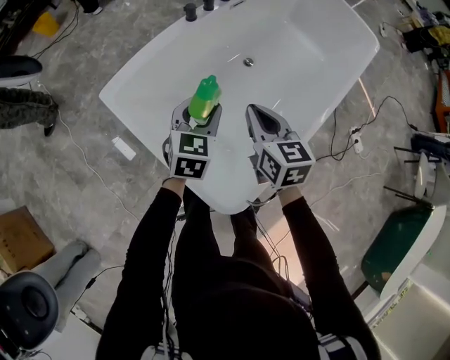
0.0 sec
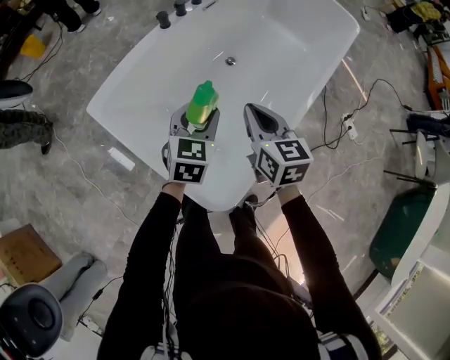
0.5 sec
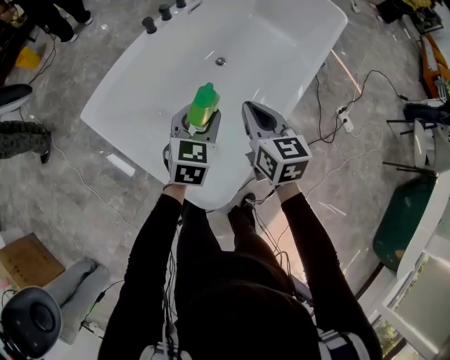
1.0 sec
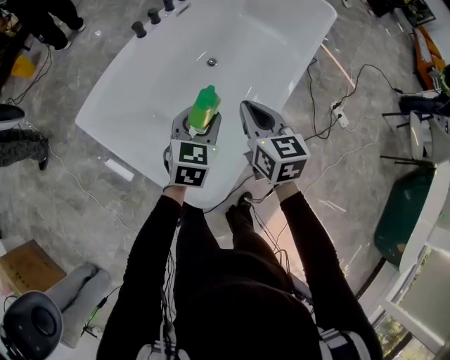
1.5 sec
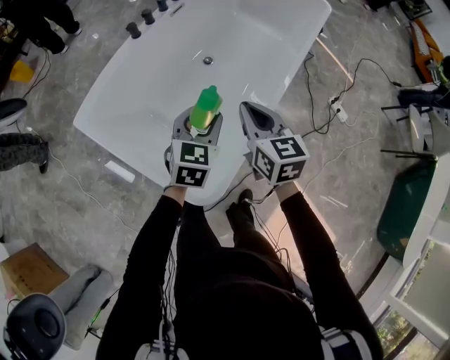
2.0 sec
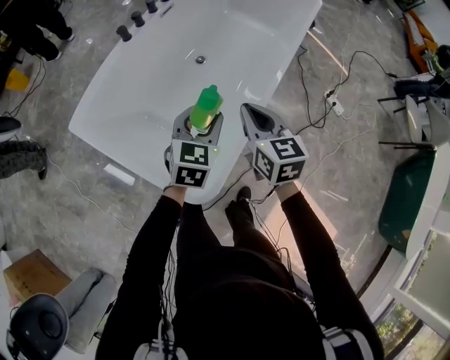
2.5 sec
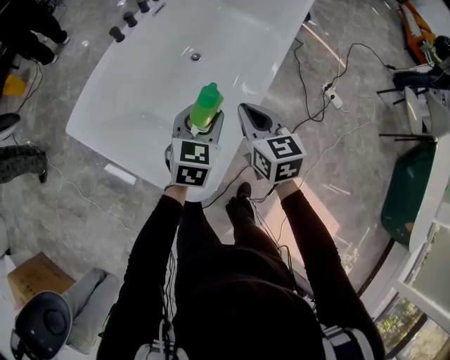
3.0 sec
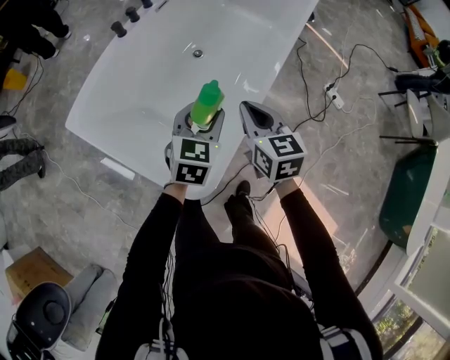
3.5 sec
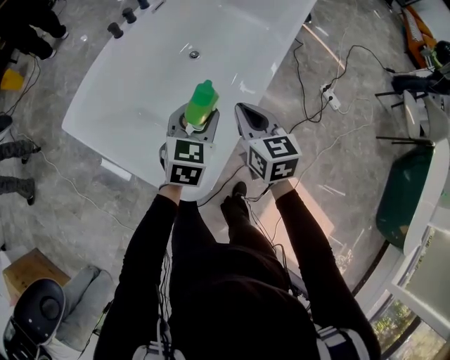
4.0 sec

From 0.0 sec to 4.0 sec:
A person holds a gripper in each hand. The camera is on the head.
From 0.0 sec to 2.0 sec: The grippers both shift to the right by roughly 15 cm.
From 2.0 sec to 4.0 sec: The grippers move only a little.

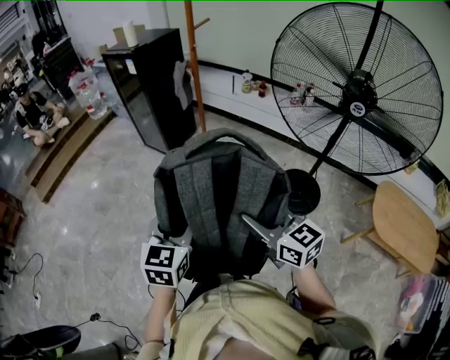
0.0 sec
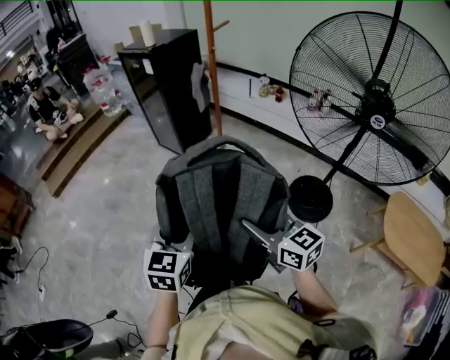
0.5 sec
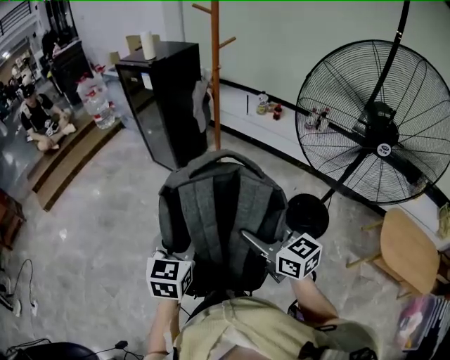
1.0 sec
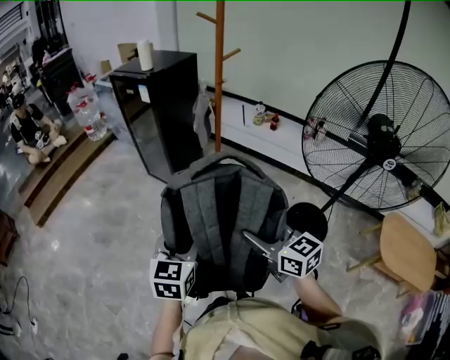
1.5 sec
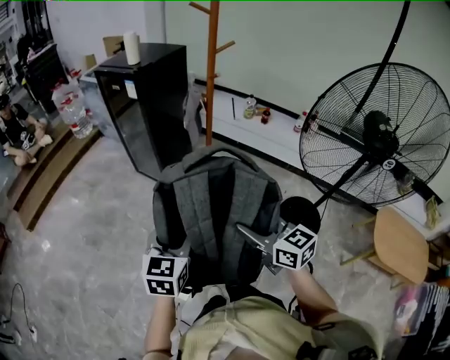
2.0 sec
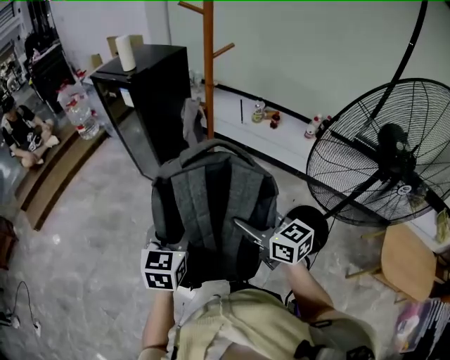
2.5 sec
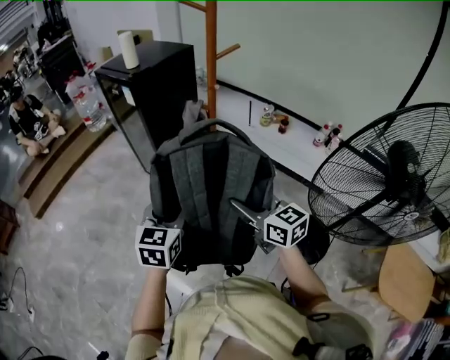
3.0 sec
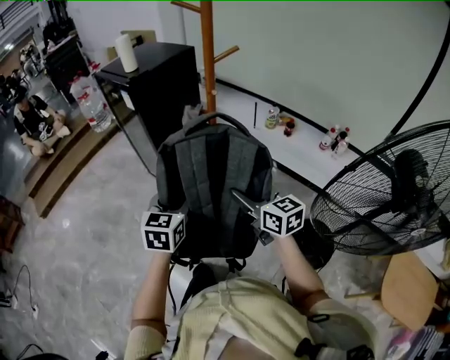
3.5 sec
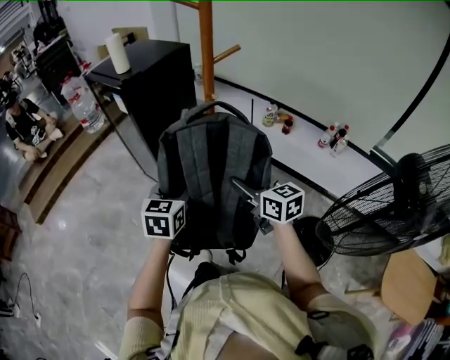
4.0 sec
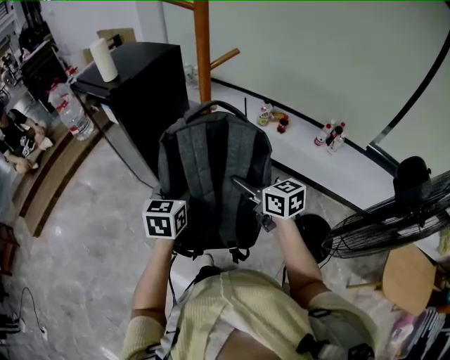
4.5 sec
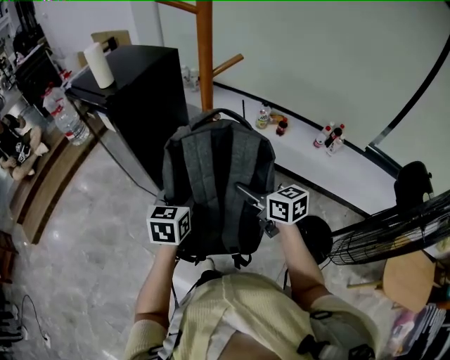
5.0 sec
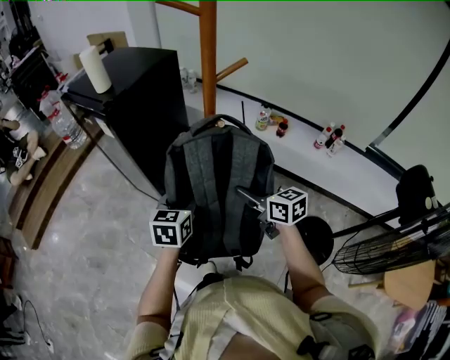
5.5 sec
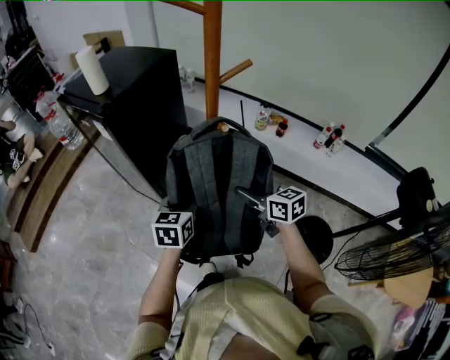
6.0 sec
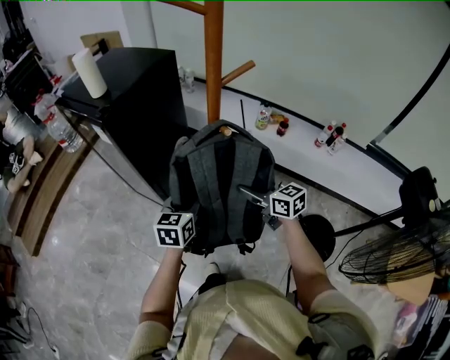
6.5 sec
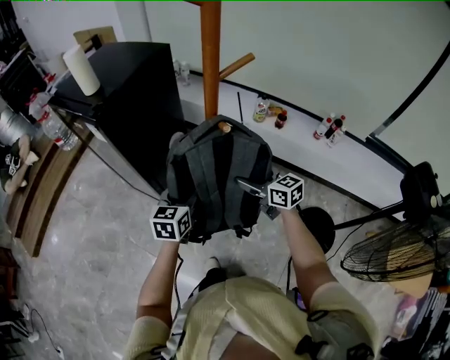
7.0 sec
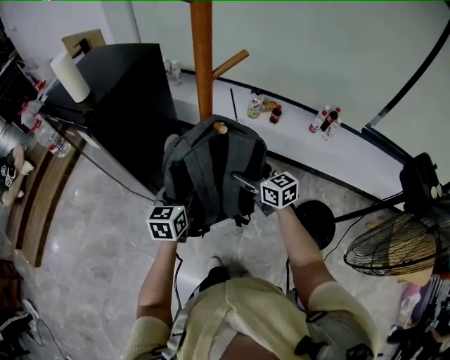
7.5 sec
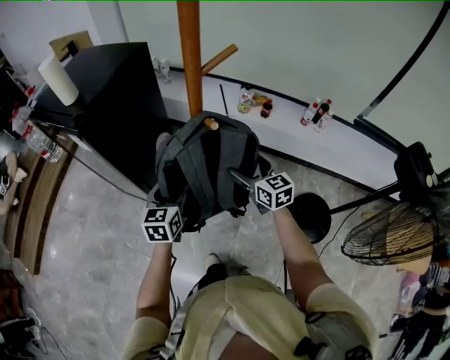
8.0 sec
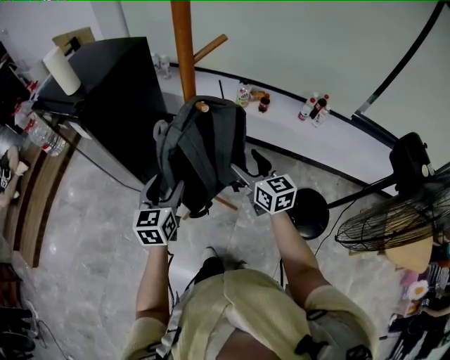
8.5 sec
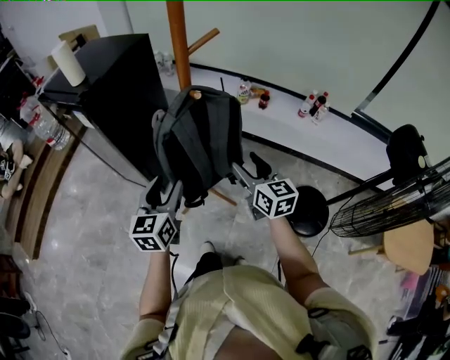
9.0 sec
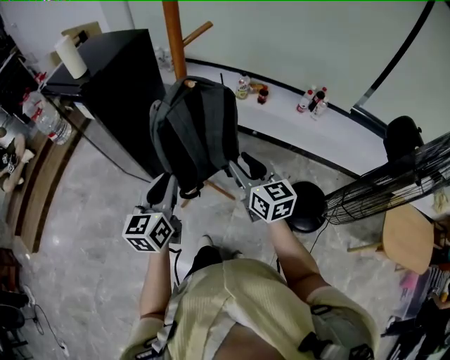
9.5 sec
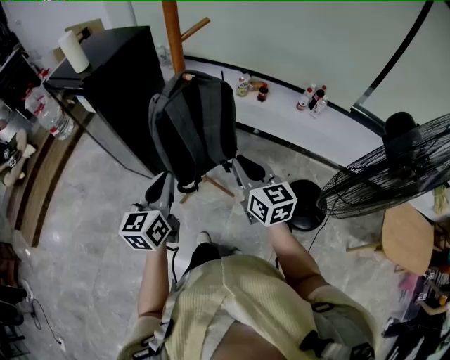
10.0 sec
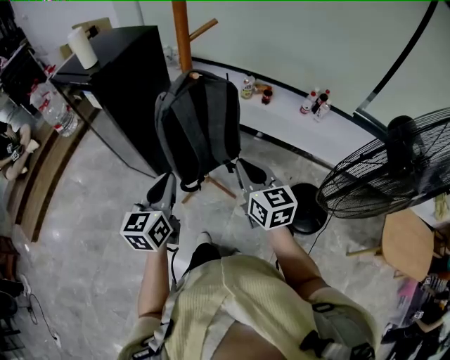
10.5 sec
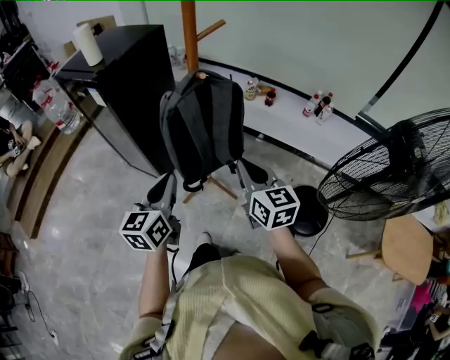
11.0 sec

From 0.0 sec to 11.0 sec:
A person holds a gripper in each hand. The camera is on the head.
From 0.0 sec to 2.0 sec: The two grippers go approximately 25 cm forward.
From 2.0 sec to 3.5 sec: The grippers both shift forward and to the right by about 30 cm.
From 3.5 sec to 5.5 sec: The two grippers go some 15 cm forward.
From 5.5 sec to 7.5 sec: The grippers both shift forward and downward by some 10 cm. The right gripper opens its fingers.
From 7.5 sec to 9.0 sec: The grippers both shift backward and upward by approximately 15 cm.
From 9.0 sec to 11.0 sec: The grippers both shift backward by roughly 10 cm. The right gripper closes its fingers, while the left gripper closes.

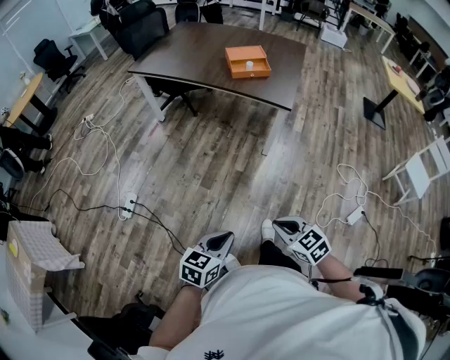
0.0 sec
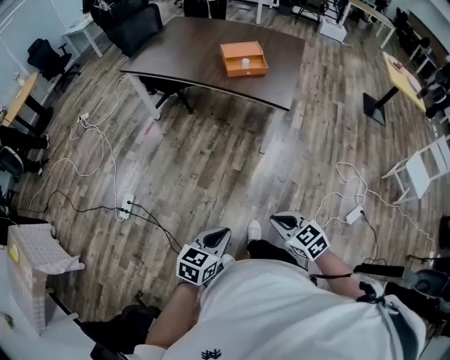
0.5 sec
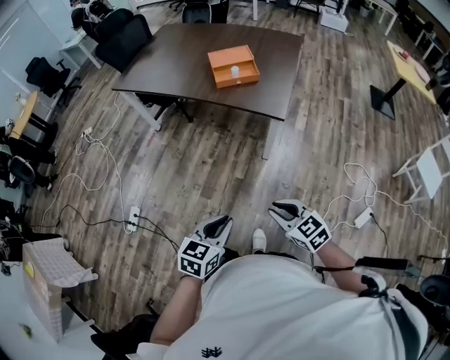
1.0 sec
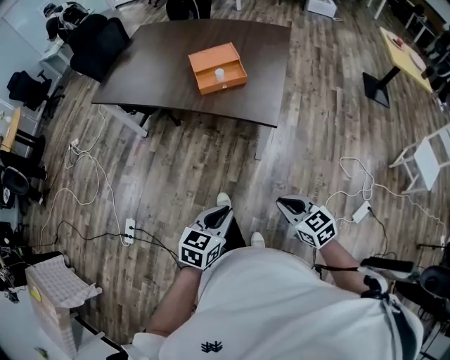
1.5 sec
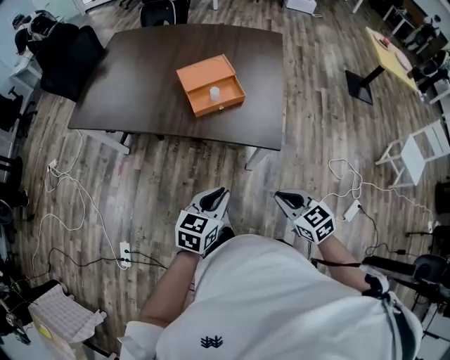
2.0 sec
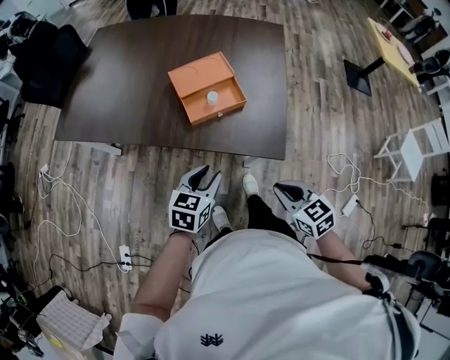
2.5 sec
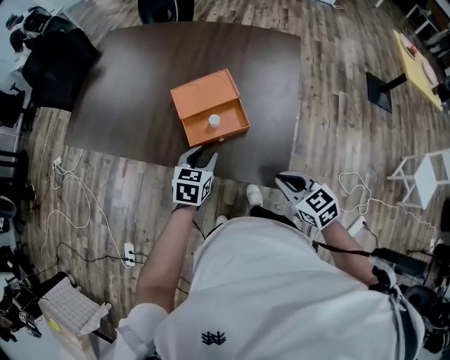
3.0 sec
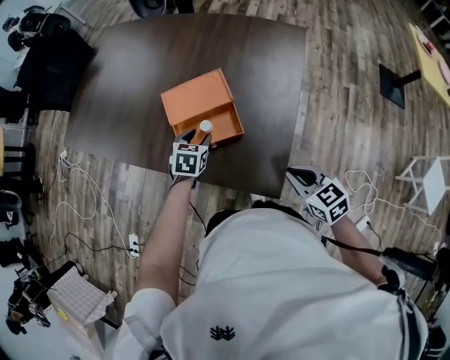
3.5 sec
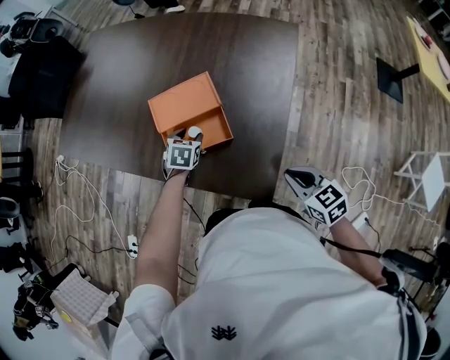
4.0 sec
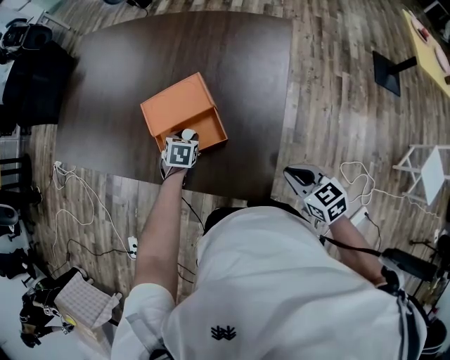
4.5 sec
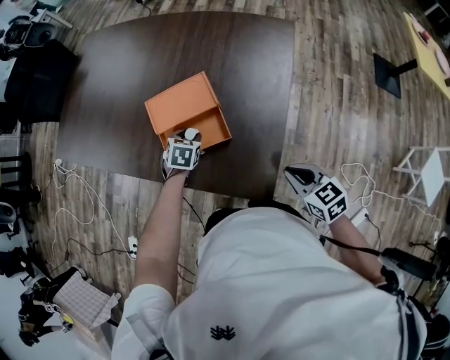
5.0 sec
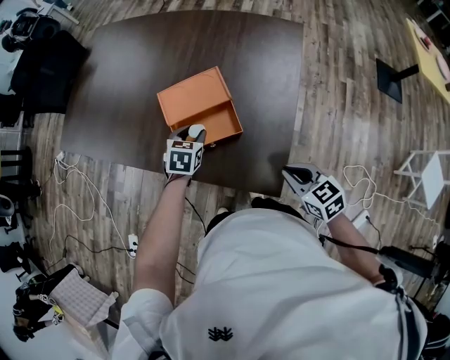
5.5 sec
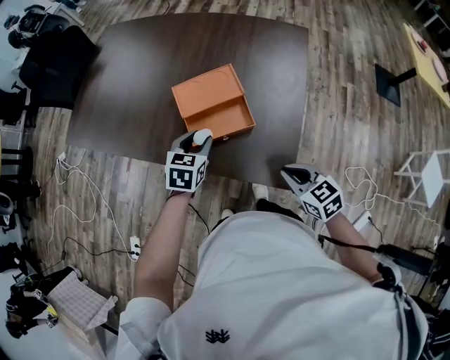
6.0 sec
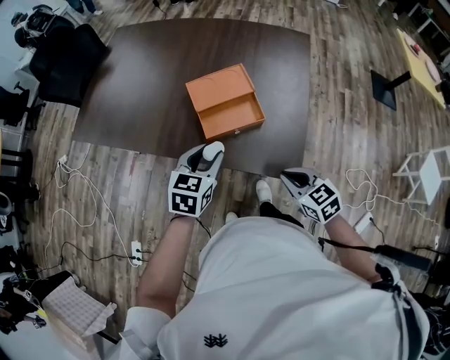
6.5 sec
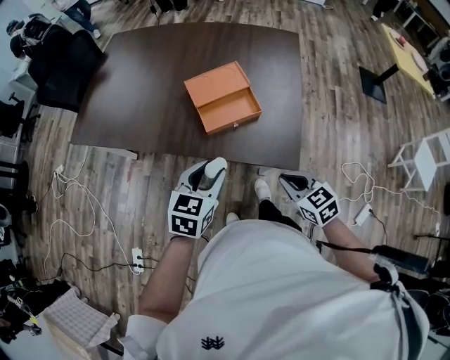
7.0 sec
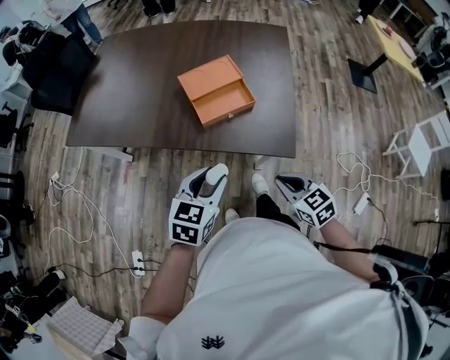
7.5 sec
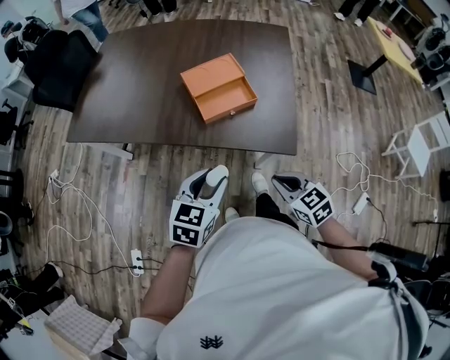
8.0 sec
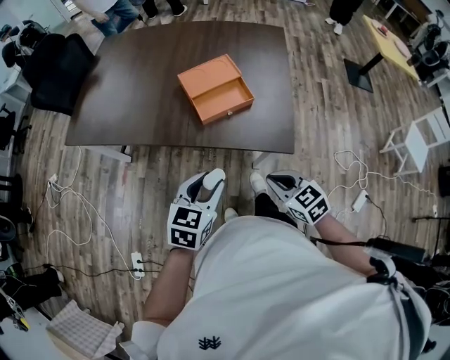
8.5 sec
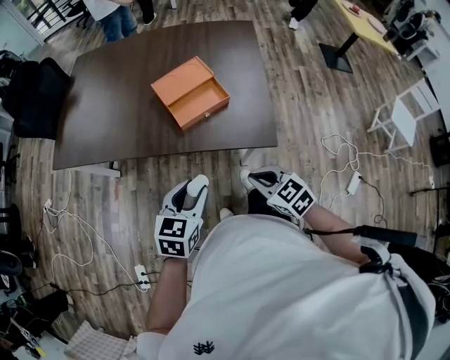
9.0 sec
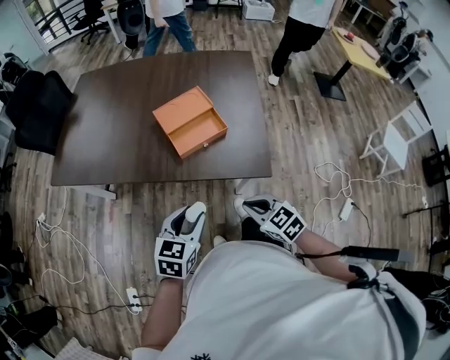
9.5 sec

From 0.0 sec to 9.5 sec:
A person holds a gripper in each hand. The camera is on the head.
From 0.0 sec to 2.0 sec: The two grippers travel together, forward, some 50 cm.
From 2.0 sec to 4.0 sec: Both grippers are carried forward, some 40 cm. The left gripper tilts its fingers some 30 degrees downward, and opens.
From 4.0 sec to 5.5 sec: The left gripper travels upward by roughly 5 cm.
From 5.5 sec to 7.5 sec: The left gripper travels backward and upward by about 35 cm, and turns by some 20 degrees. The right gripper heads backward and to the left, covering approximately 30 cm.
From 7.5 sec to 9.5 sec: The grippers make only small movements.

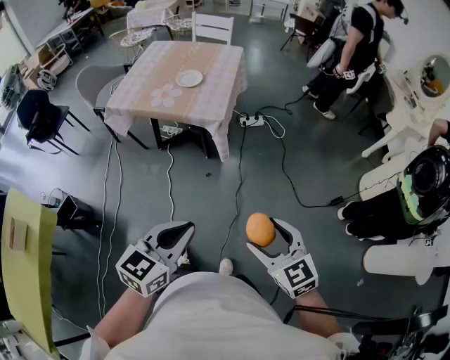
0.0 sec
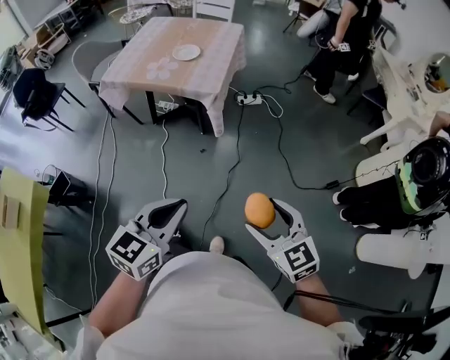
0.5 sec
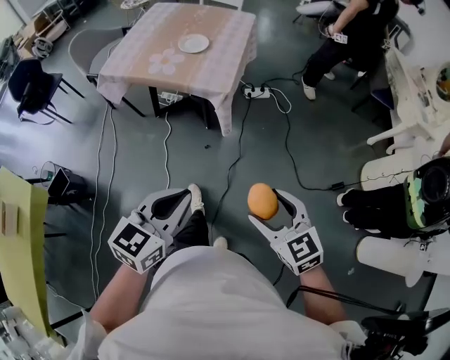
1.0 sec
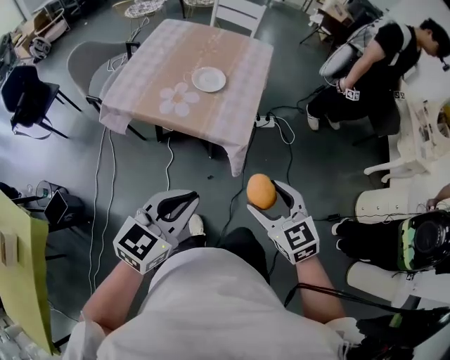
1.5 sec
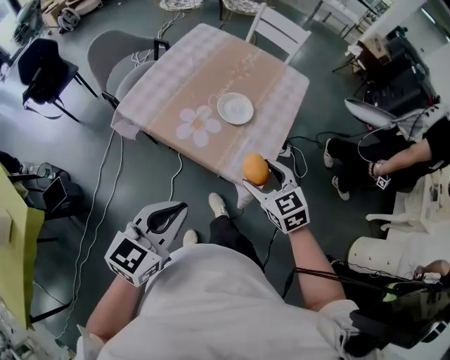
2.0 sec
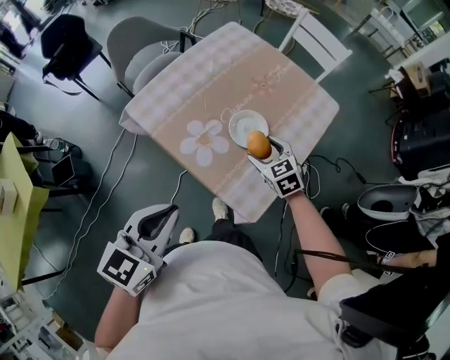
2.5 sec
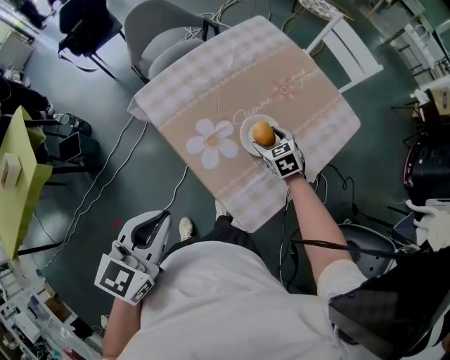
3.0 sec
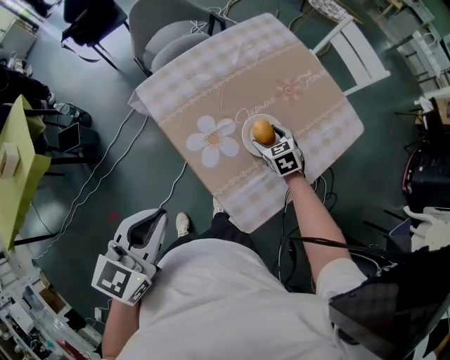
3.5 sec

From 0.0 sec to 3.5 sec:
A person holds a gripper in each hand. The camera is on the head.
From 0.0 sec to 2.0 sec: The two grippers travel together, forward, approximately 50 cm.
From 2.0 sec to 3.5 sec: The right gripper changes place by approximately 35 cm, and swivels some 20 degrees. The left gripper shifts by roughly 10 cm, and turns by some 30 degrees.
